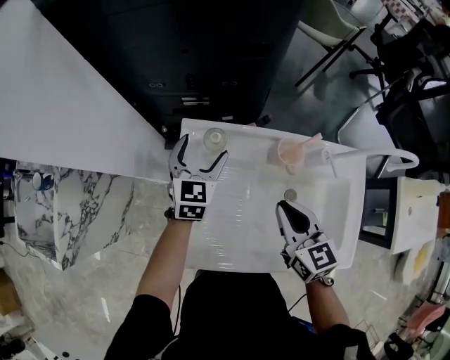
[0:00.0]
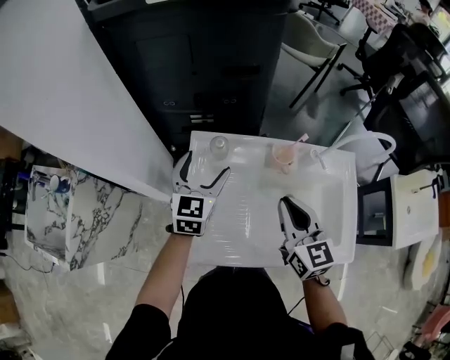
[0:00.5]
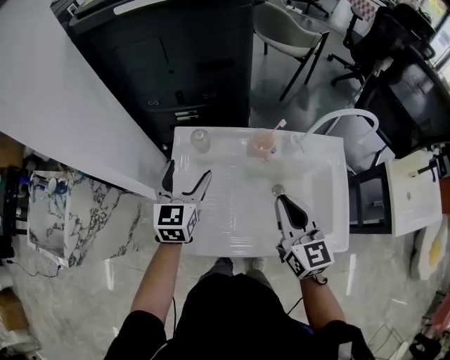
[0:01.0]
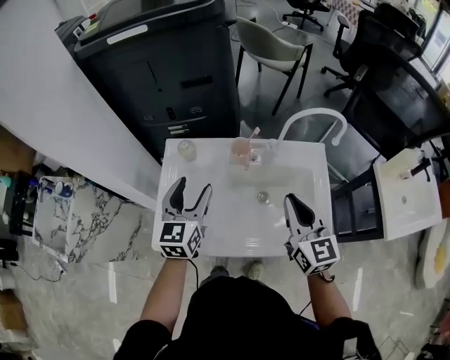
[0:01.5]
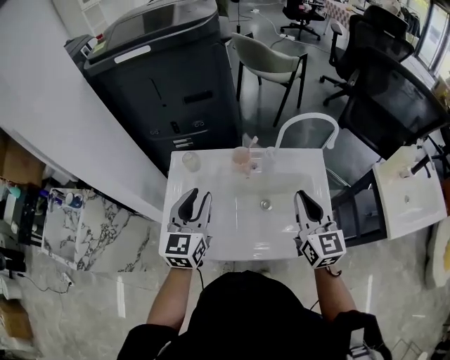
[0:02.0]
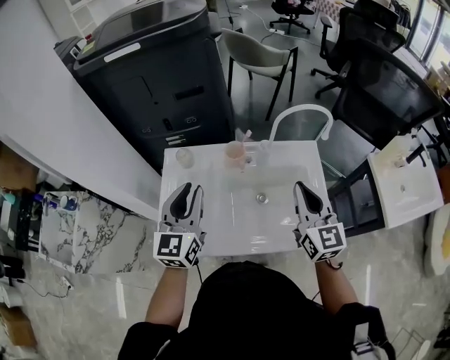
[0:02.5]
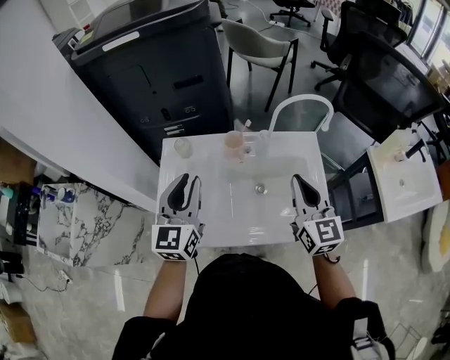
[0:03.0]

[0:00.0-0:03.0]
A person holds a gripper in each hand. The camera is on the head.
0:00.0 to 0:01.5: The left gripper shifts about 25 cm backward, upward and to the right. Meanwhile the right gripper travels to the right, upward and backward by roughly 20 cm, and rotates about 20 degrees.
0:01.5 to 0:03.0: The left gripper moves upward, some 5 cm, and closes.

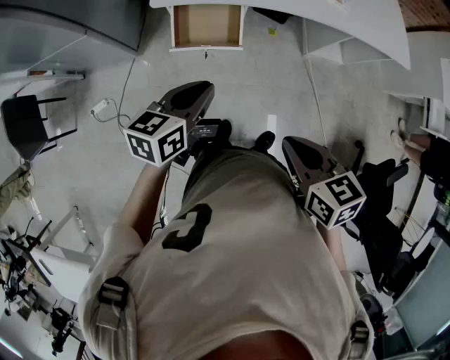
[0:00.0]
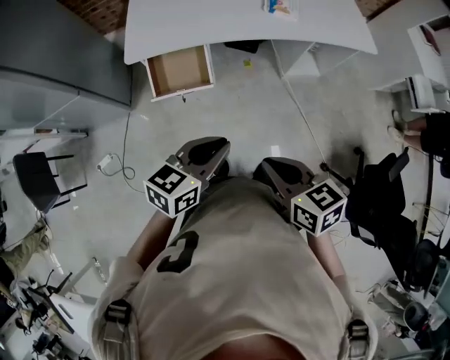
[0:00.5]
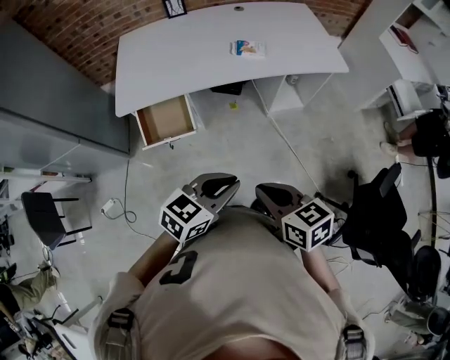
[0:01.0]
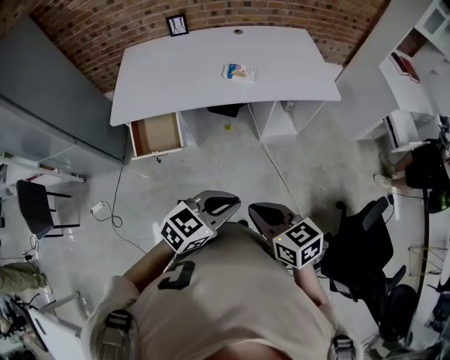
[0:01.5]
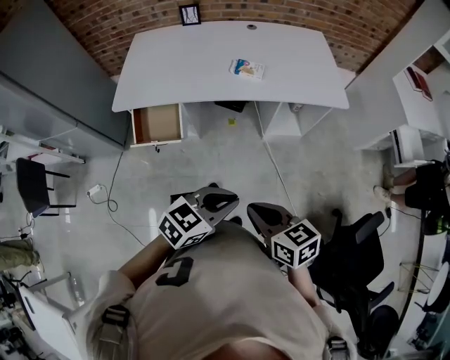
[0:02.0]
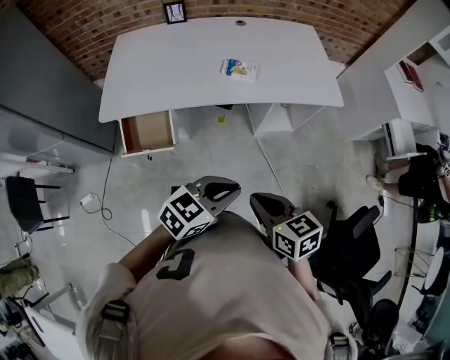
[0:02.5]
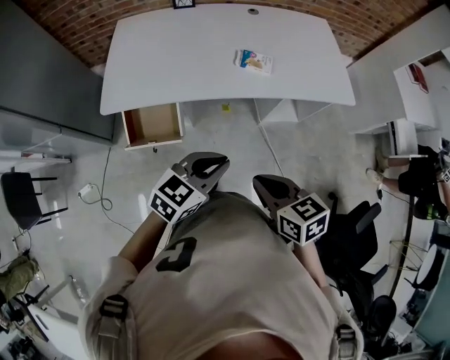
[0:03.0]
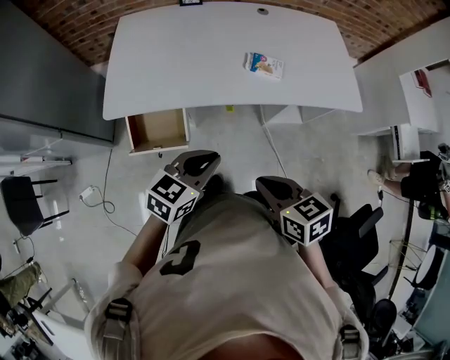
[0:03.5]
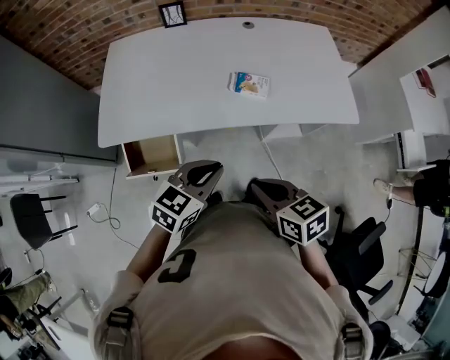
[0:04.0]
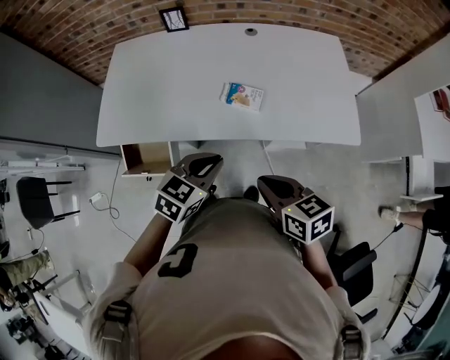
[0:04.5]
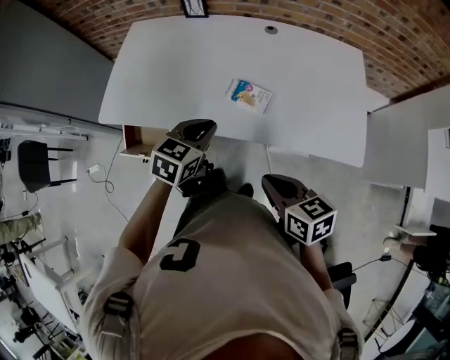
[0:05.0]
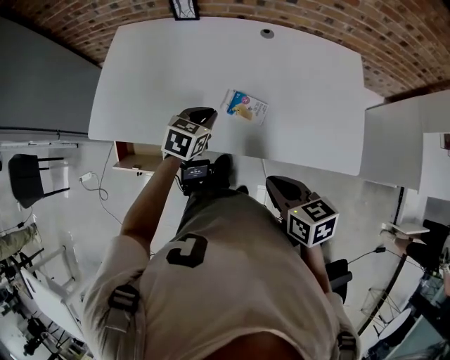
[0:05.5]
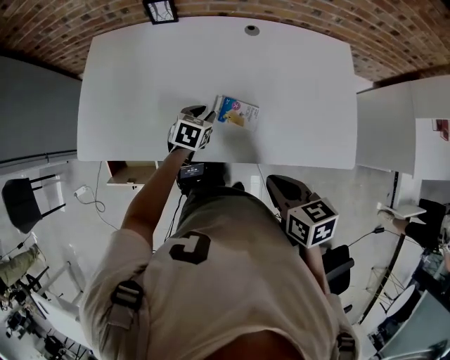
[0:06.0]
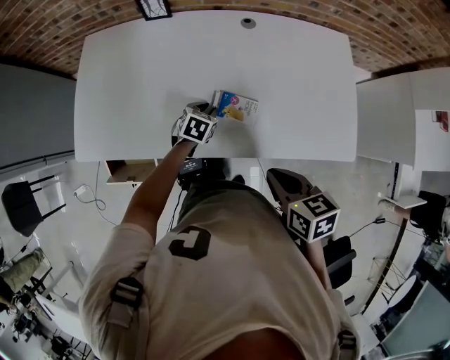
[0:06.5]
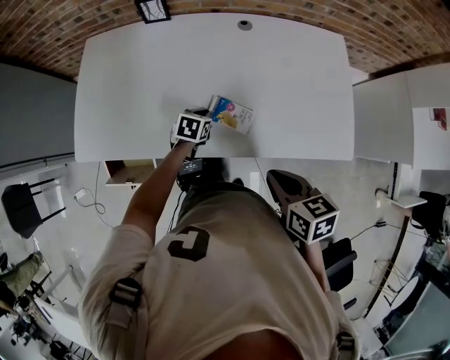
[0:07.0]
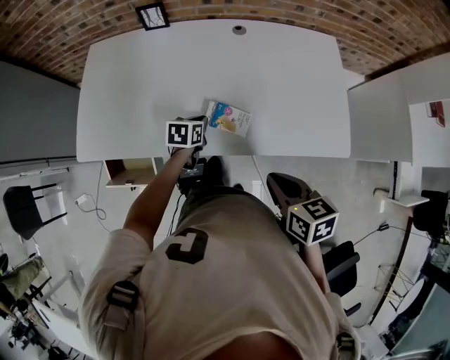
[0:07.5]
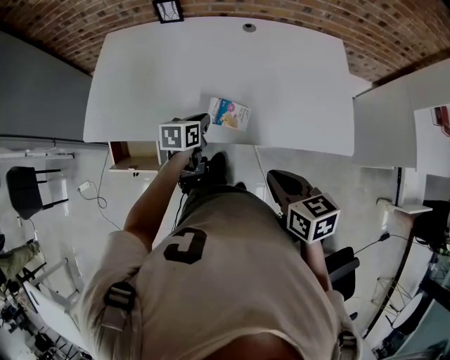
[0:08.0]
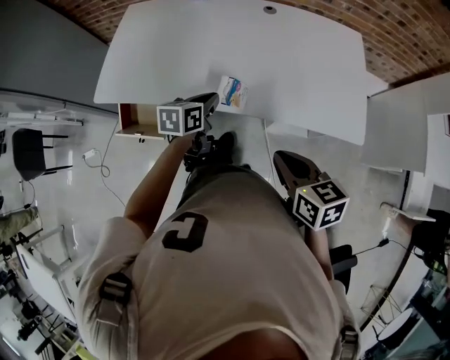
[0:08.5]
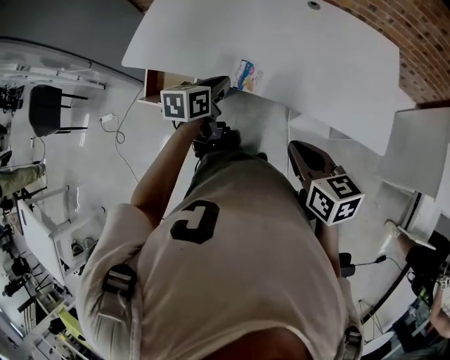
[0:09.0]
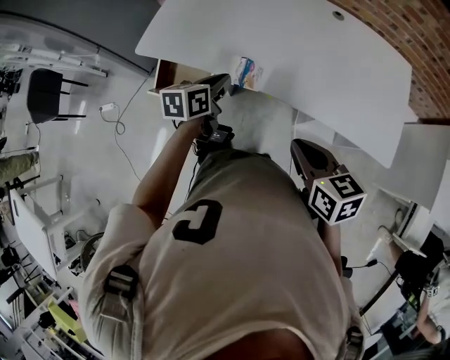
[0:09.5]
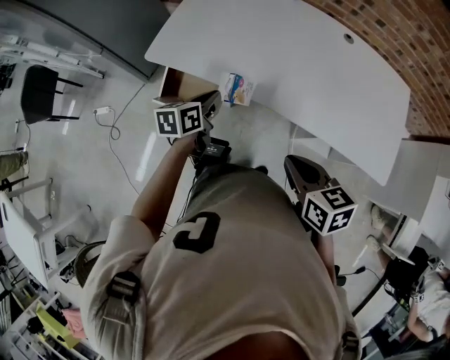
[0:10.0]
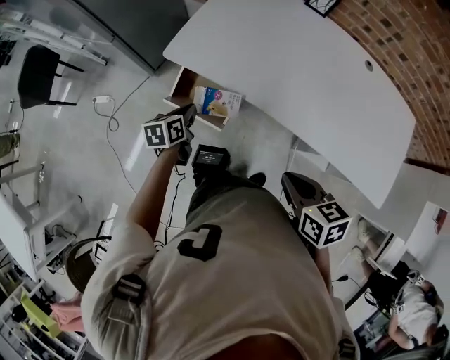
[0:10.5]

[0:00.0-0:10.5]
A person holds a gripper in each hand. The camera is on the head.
0:00.0 to 0:02.0: The left gripper heads to the right, covering some 40 cm, and swivels about 30 degrees. The right gripper moves to the right, some 25 cm.
0:02.0 to 0:04.0: The right gripper shifts roughly 25 cm forward. Meanwhile the left gripper goes approximately 30 cm forward and to the left.
0:04.0 to 0:06.5: The right gripper shifts some 25 cm forward and to the right, while the left gripper shifts some 40 cm forward and downward, and swivels about 30 degrees.
0:06.5 to 0:08.5: The left gripper moves backward and upward, some 20 cm, turns by some 30 degrees, and closes, while the right gripper moves backward, about 10 cm.
0:08.5 to 0:10.5: The left gripper is displaced to the left by approximately 40 cm, and turns by about 30 degrees, while the right gripper heads to the left, covering some 25 cm, and changes its angle by some 20 degrees.

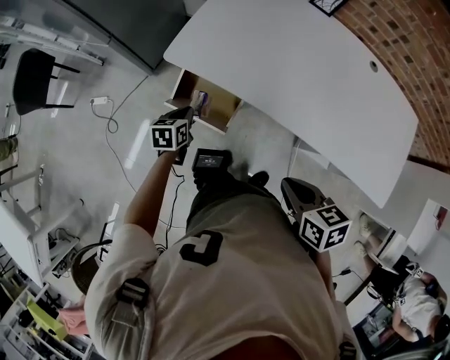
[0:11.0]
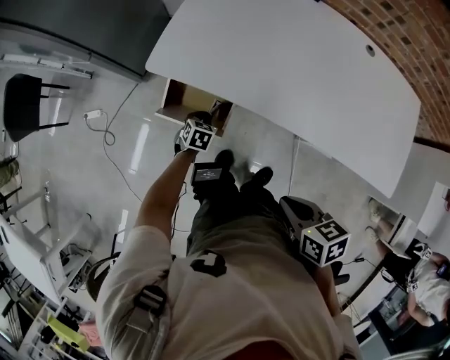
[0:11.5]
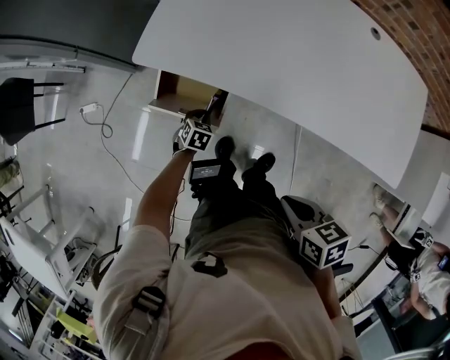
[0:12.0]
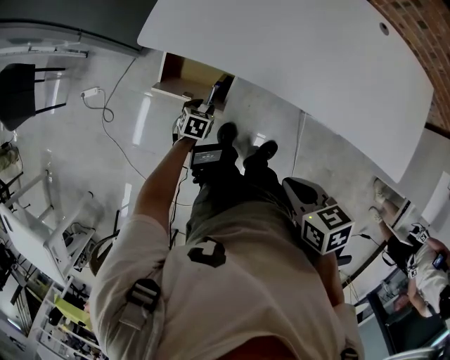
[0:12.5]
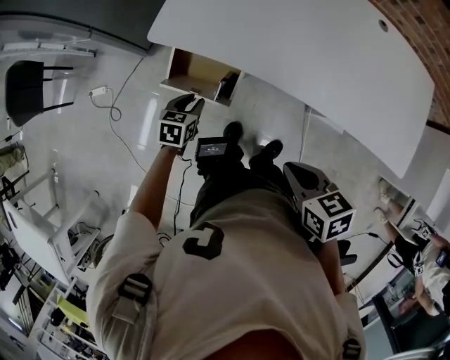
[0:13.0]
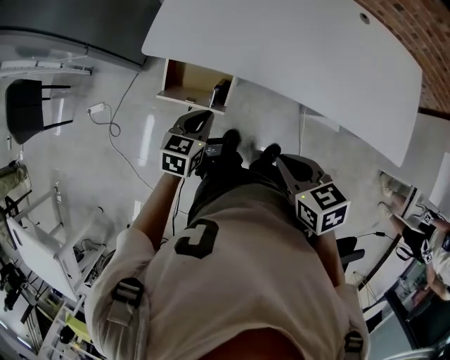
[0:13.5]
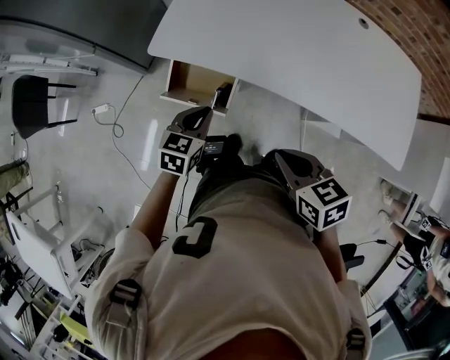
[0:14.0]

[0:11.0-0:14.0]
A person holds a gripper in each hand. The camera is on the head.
0:11.0 to 0:12.5: The left gripper is displaced downward and to the right by roughly 15 cm, swivels approximately 30 degrees, and opens up; the right gripper moves approximately 5 cm.
0:12.5 to 0:14.0: The right gripper shifts by some 5 cm. The left gripper goes approximately 25 cm upward, turns by approximately 30 degrees, and closes.

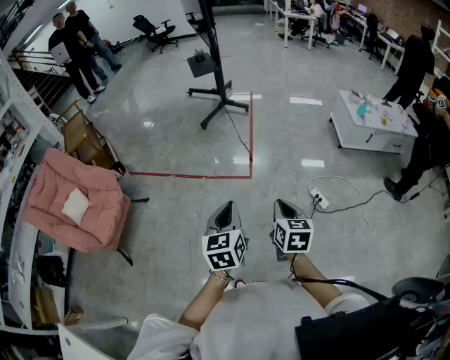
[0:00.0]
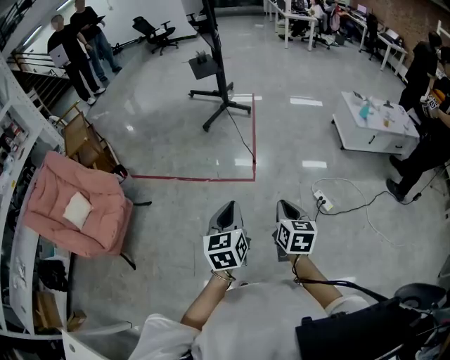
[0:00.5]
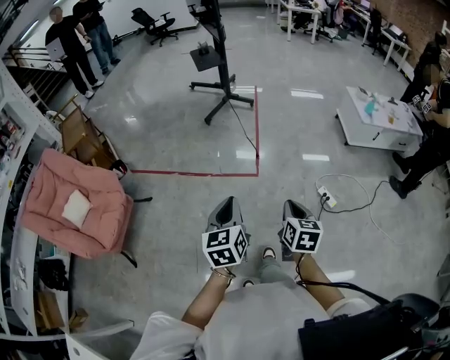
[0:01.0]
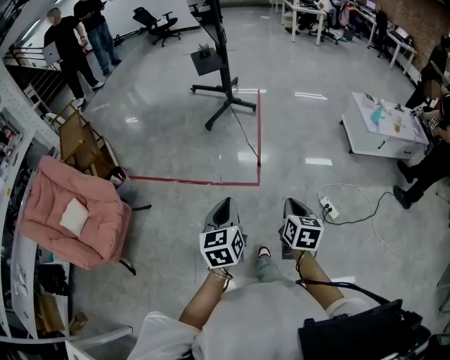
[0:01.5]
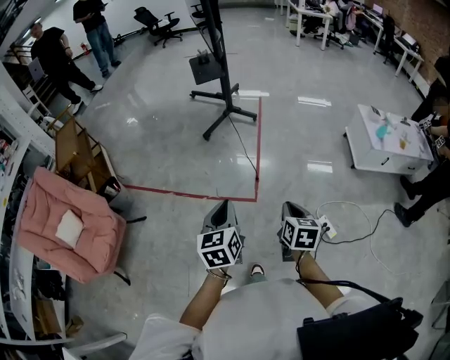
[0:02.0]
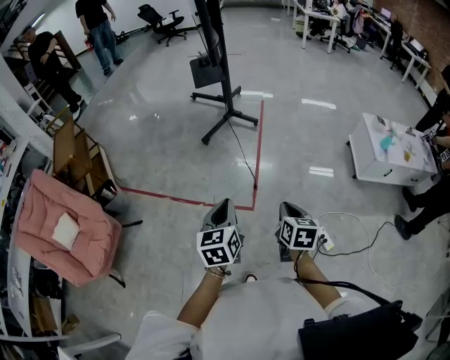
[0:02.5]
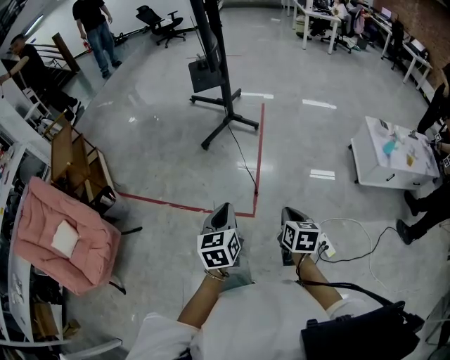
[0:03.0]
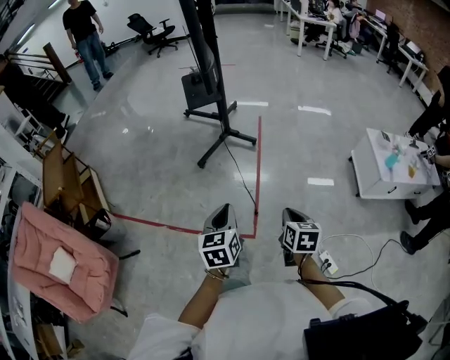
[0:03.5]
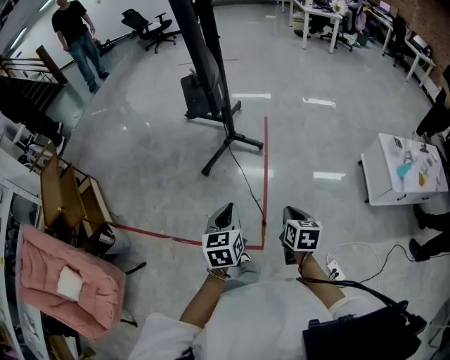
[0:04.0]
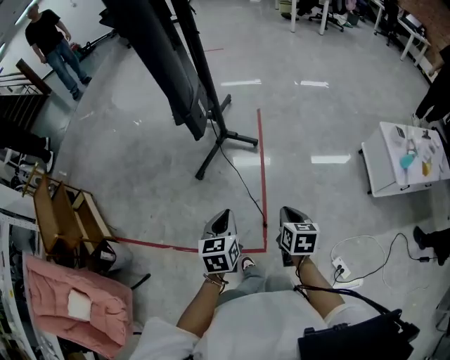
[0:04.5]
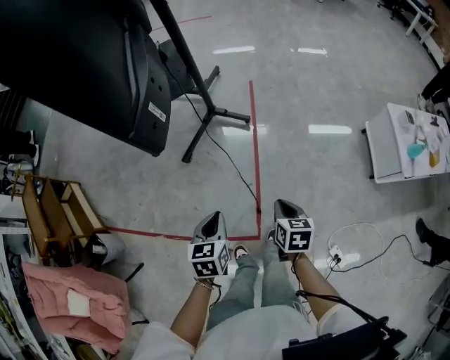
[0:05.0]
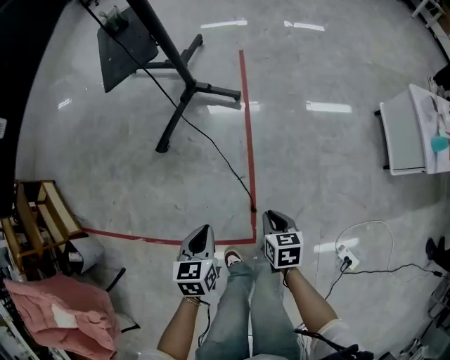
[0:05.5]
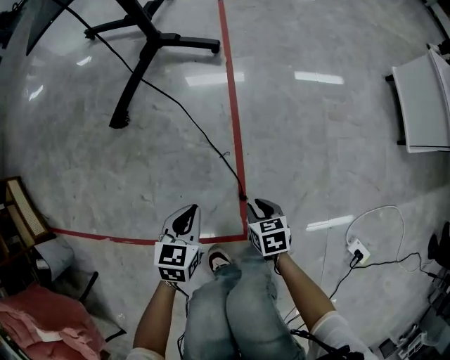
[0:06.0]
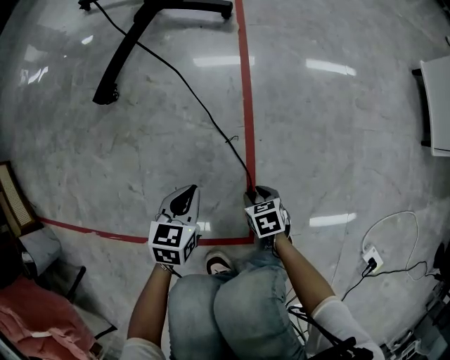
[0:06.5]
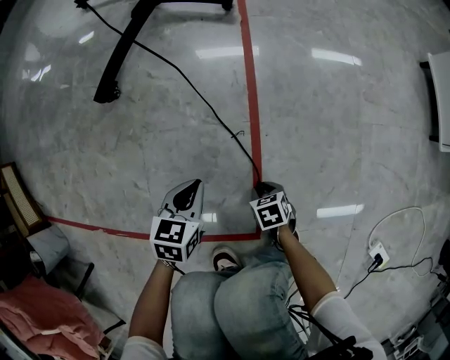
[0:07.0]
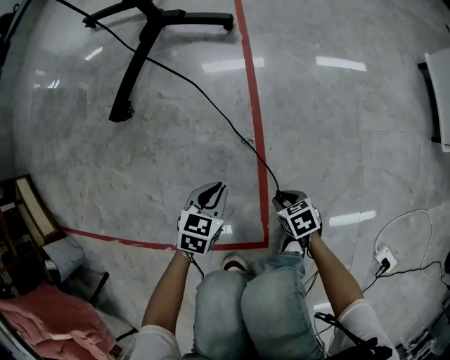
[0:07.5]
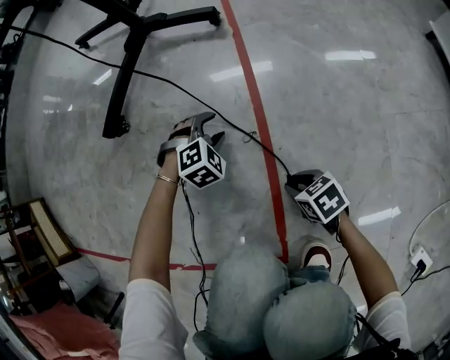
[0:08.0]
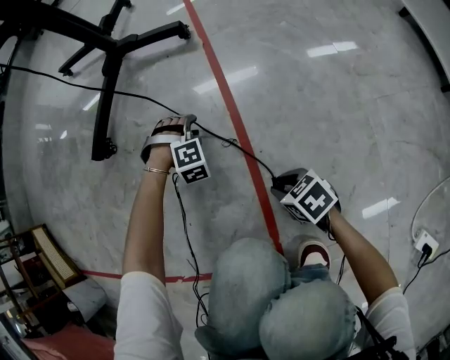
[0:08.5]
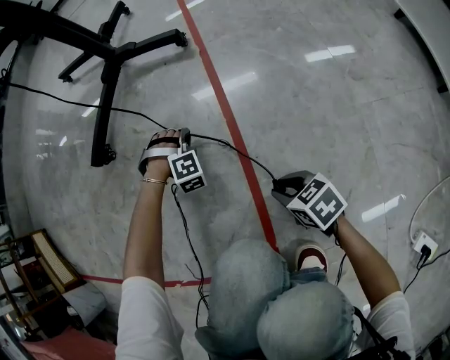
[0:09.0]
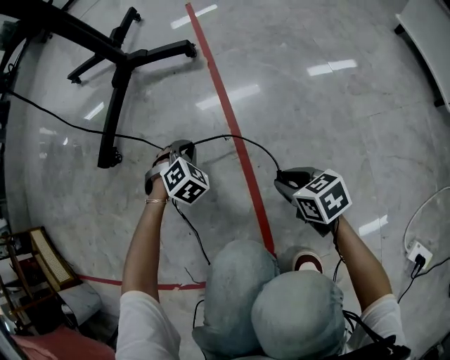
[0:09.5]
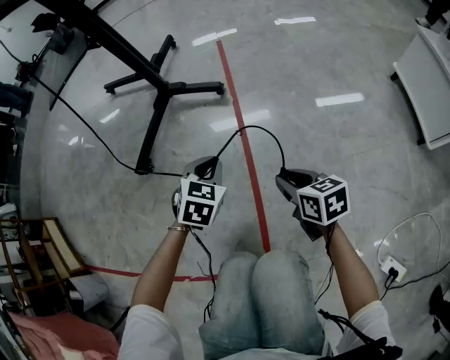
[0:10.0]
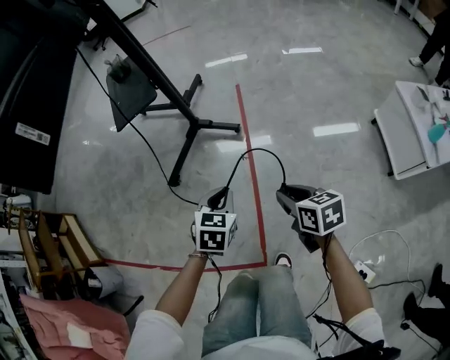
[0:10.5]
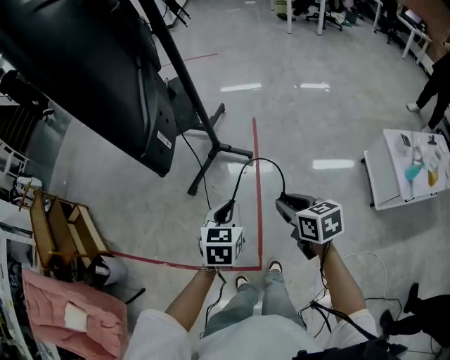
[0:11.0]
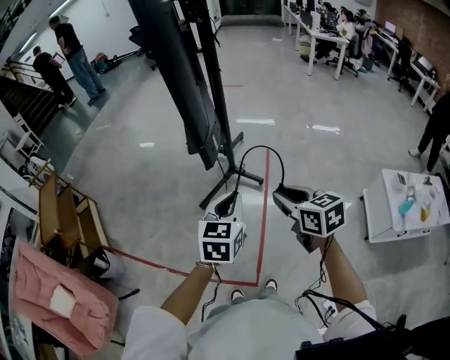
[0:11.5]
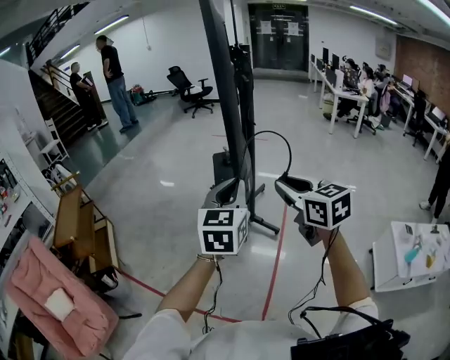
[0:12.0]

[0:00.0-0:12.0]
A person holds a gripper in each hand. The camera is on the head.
0:00.0 to 0:02.0: The grippers both shift forward by roughly 25 cm.
0:02.0 to 0:04.0: The pair of grippers is taken forward, about 40 cm.
0:04.0 to 0:06.0: The two grippers go approximately 60 cm downward. The left gripper changes its angle by roughly 30 degrees. The right gripper changes its angle by about 20 degrees.
0:06.0 to 0:08.0: The left gripper goes about 30 cm downward and forward, twists roughly 70 degrees clockwise, seen from behind, and opens; the right gripper heads downward, covering roughly 20 cm, and swivels approximately 20 degrees.
0:08.0 to 0:10.0: Both grippers travel together upward, approximately 25 cm. The left gripper rolls counterclockwise, seen from behind, by approximately 40 degrees, and closes up; the right gripper turns by approximately 30 degrees.
0:10.0 to 0:12.0: The two grippers go roughly 90 cm upward. The right gripper rotates roughly 50 degrees; the left gripper points its fingers approximately 40 degrees further upward.
